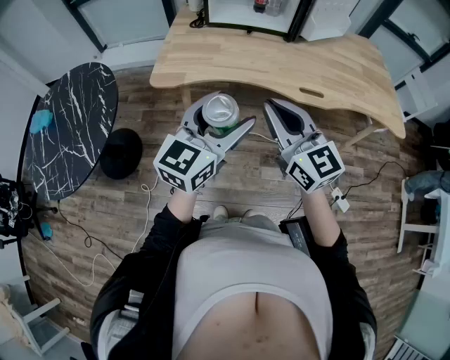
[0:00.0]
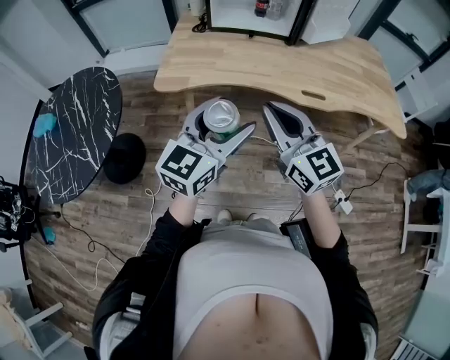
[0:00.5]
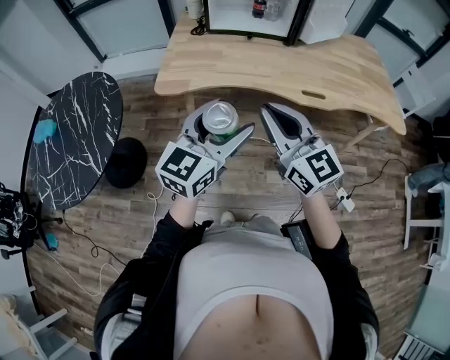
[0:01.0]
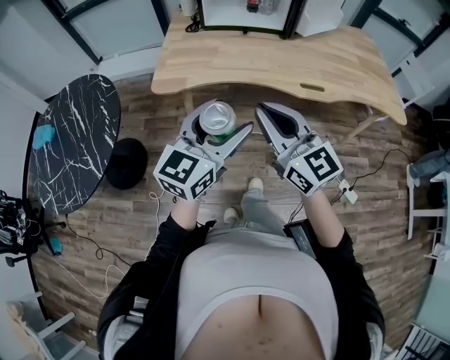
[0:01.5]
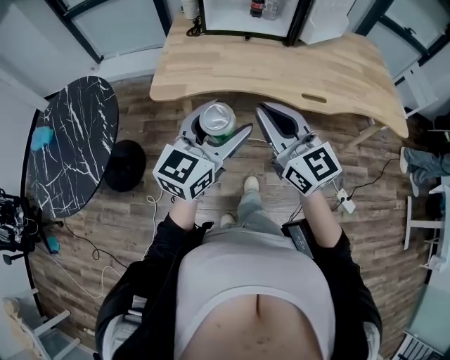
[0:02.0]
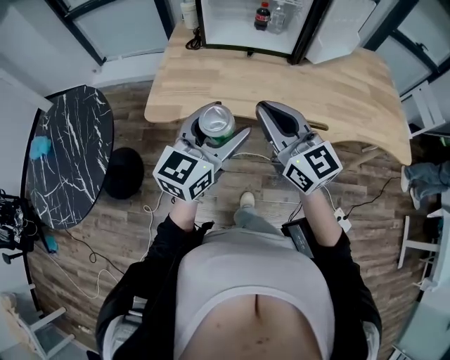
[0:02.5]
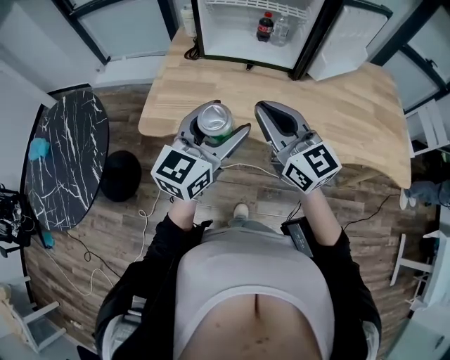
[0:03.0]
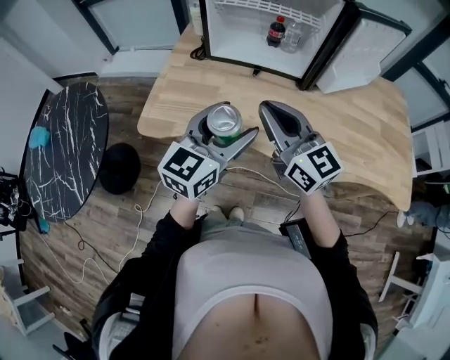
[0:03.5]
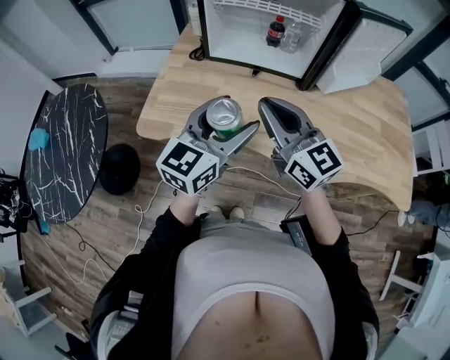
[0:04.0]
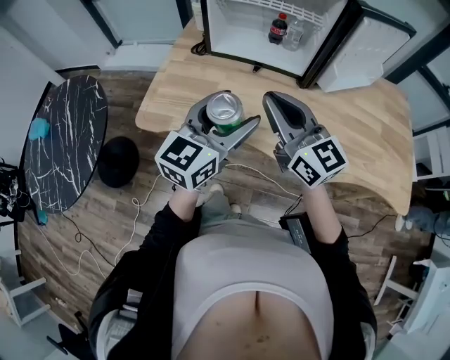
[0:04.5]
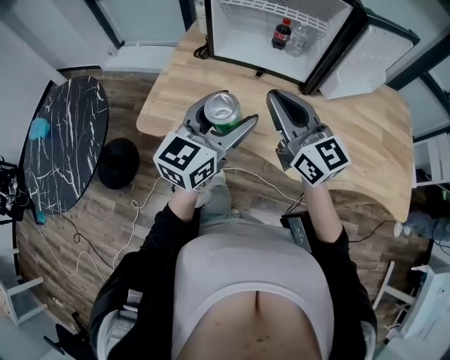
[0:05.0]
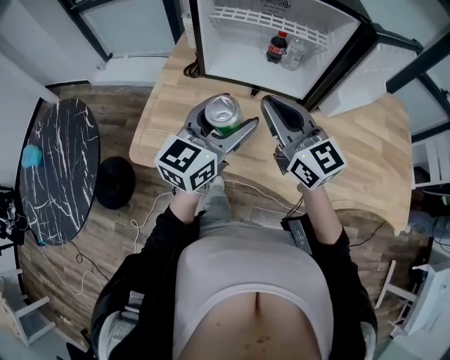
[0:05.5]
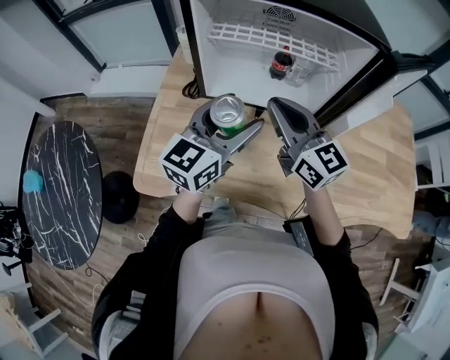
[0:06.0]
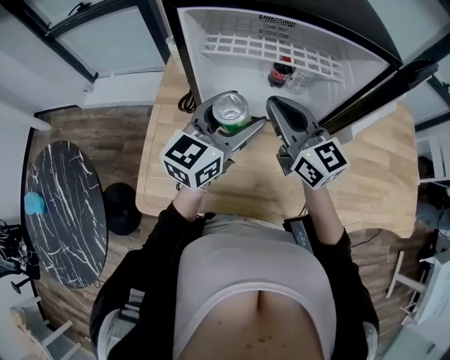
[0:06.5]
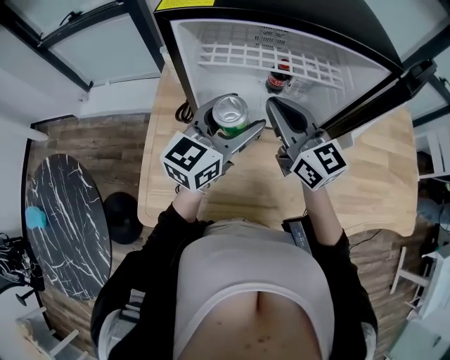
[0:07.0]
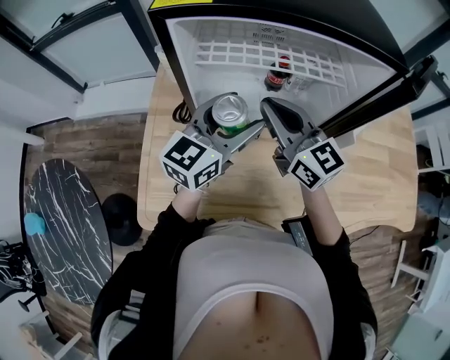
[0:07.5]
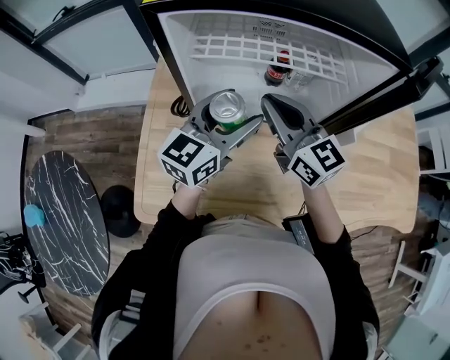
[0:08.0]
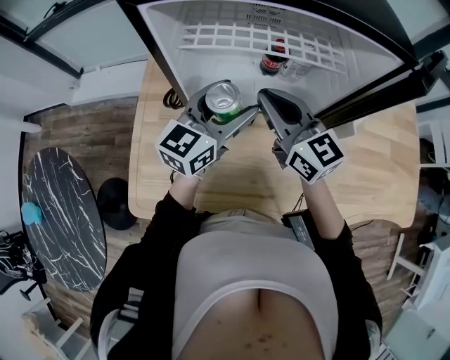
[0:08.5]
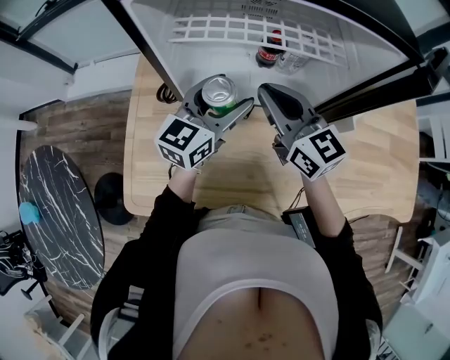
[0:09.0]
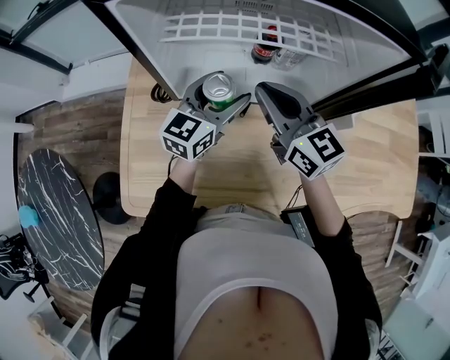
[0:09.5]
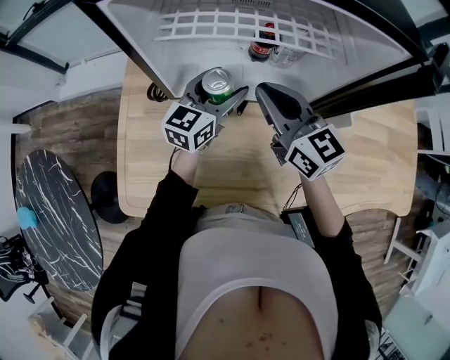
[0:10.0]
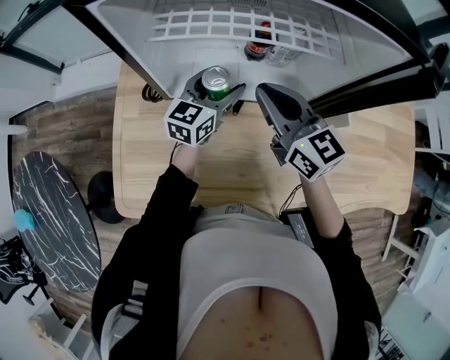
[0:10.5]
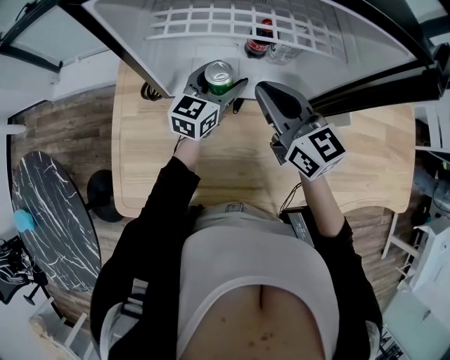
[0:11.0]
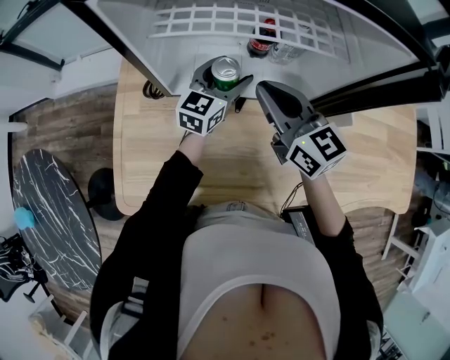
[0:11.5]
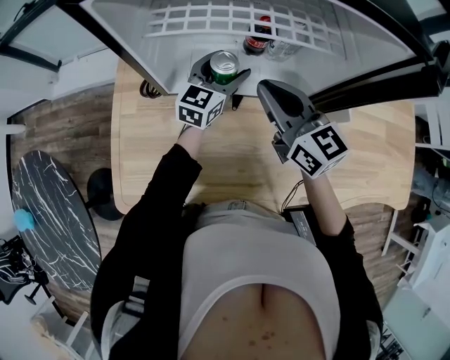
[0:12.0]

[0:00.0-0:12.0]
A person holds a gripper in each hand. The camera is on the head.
0:00.0 to 0:02.0: There are only small adjustments of the grippers.
0:02.0 to 0:04.0: The two grippers go about 25 cm forward.
0:04.0 to 0:06.0: The two grippers go approximately 20 cm forward.
0:06.0 to 0:08.0: Both grippers move forward, approximately 10 cm.
0:08.0 to 0:10.0: The left gripper travels downward and forward by approximately 15 cm, while the right gripper changes place by about 5 cm.
0:10.0 to 0:12.0: The left gripper moves approximately 5 cm.

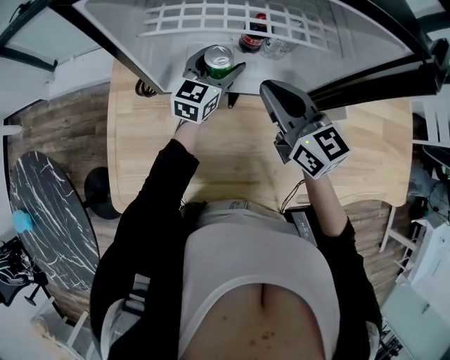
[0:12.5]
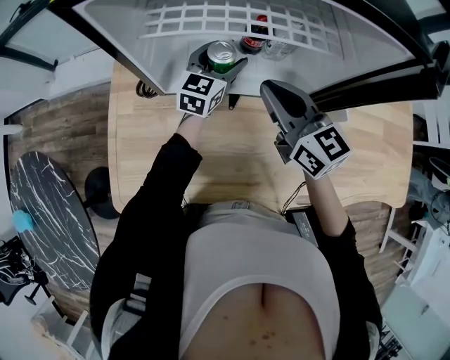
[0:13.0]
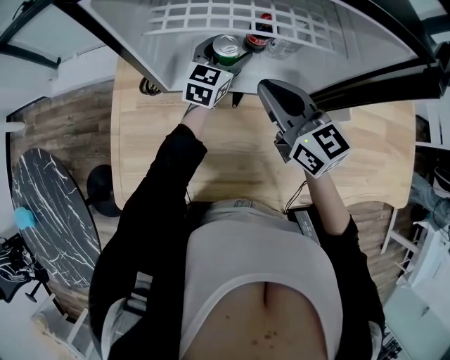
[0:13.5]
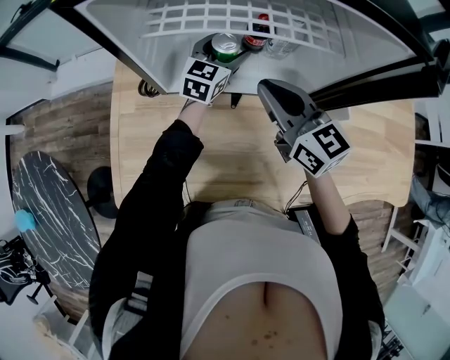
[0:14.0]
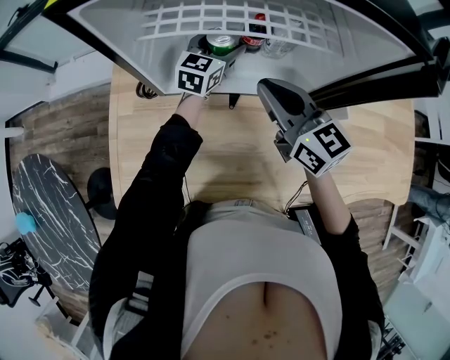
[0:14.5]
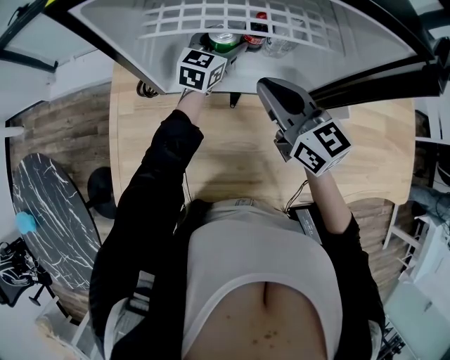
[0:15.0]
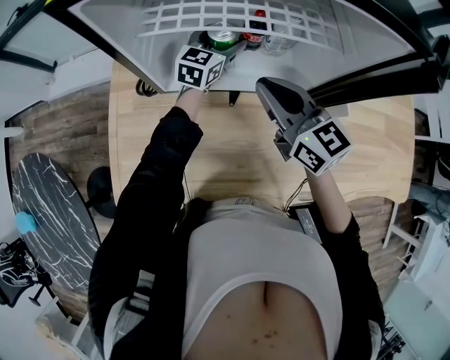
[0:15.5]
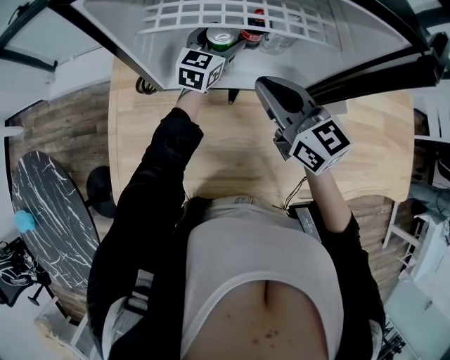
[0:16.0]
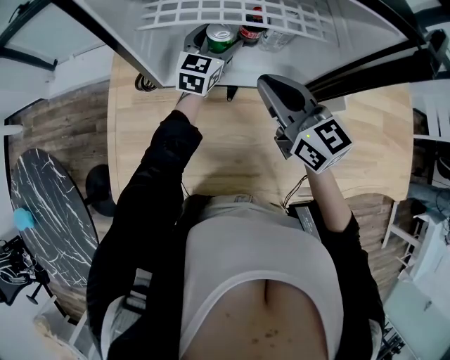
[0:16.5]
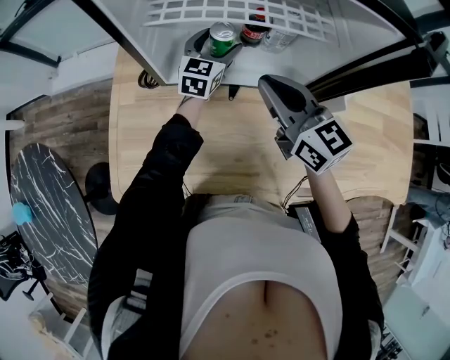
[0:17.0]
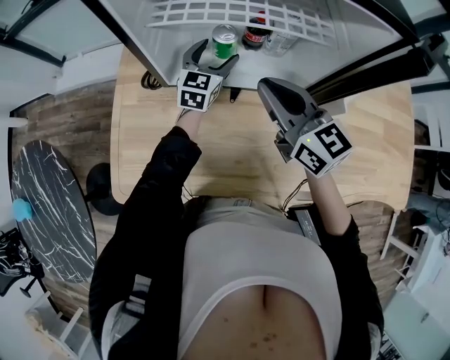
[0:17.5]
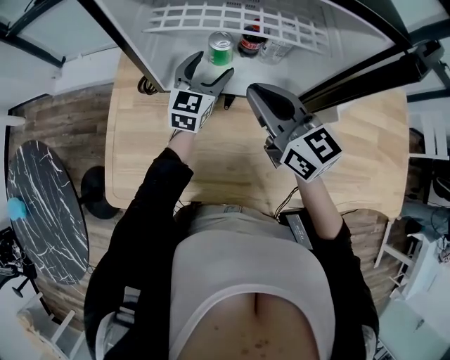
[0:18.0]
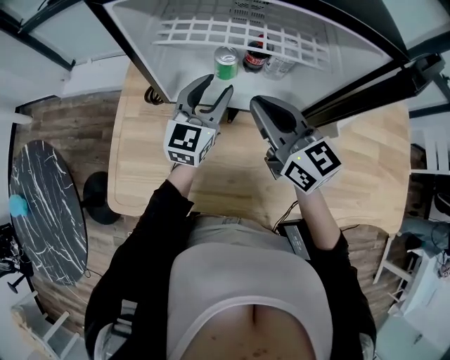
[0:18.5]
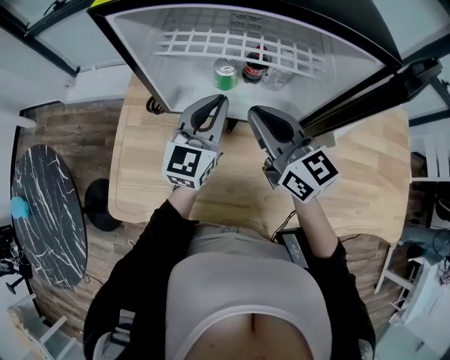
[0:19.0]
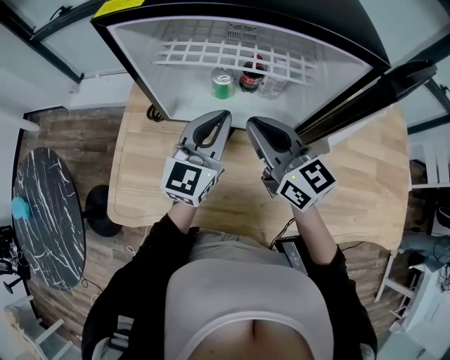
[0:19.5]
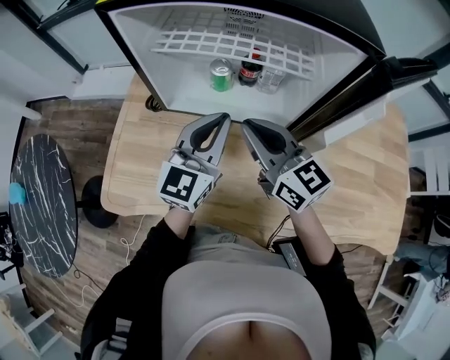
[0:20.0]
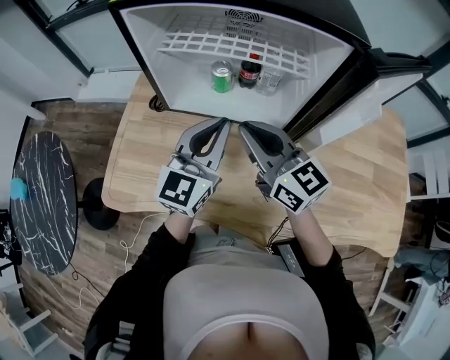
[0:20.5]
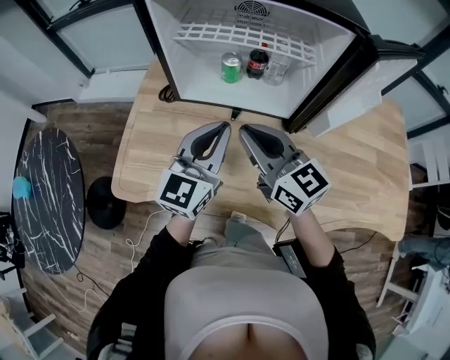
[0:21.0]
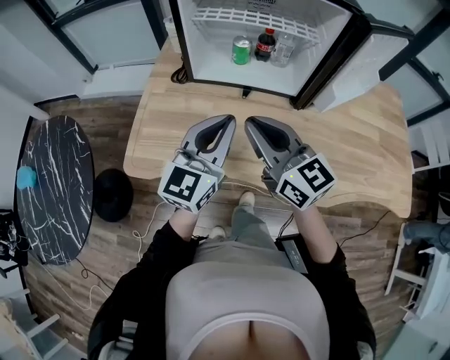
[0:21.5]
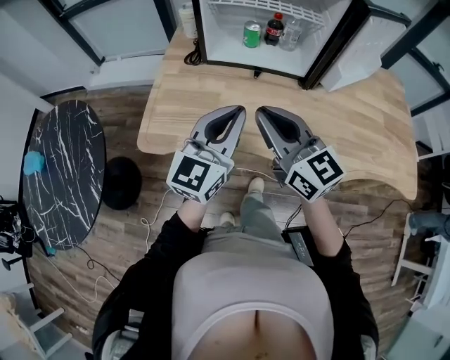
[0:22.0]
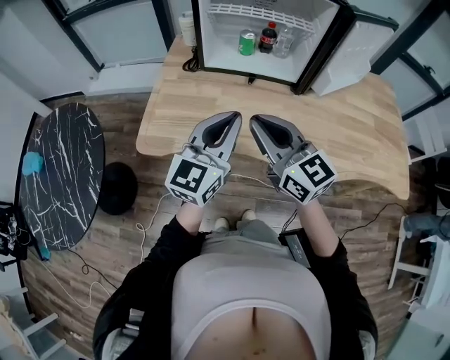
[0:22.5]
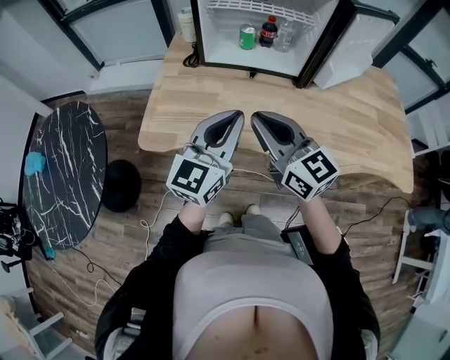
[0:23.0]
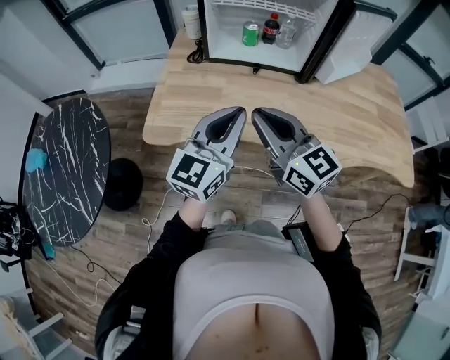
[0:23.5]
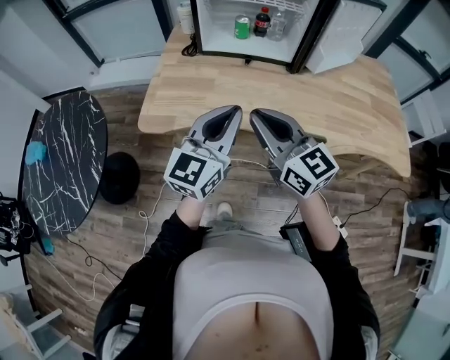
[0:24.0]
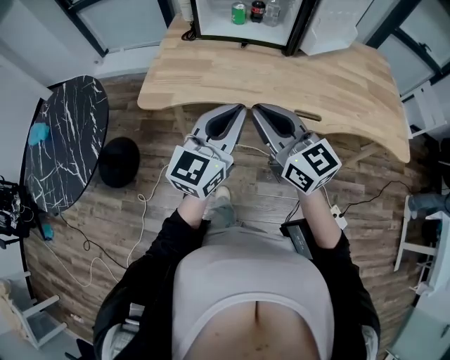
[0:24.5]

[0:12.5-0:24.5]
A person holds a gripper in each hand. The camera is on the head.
0:12.5 to 0:14.5: The left gripper heads forward, covering approximately 5 cm.
0:14.5 to 0:16.5: The grippers move only a little.
0:16.5 to 0:18.5: The left gripper moves backward and upward, some 15 cm, and closes its fingers.
0:18.5 to 0:20.5: The left gripper moves backward and upward, some 15 cm, and closes; the right gripper travels backward by roughly 5 cm.
0:20.5 to 0:22.5: Both grippers move backward and to the left, some 25 cm.
0:22.5 to 0:24.5: The grippers both shift backward by some 15 cm.

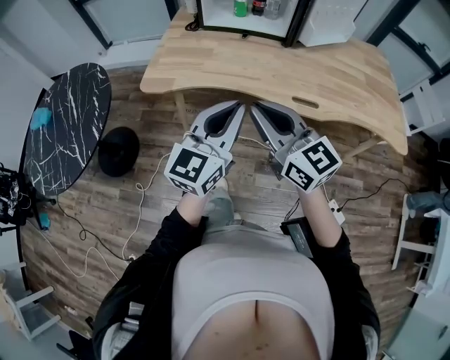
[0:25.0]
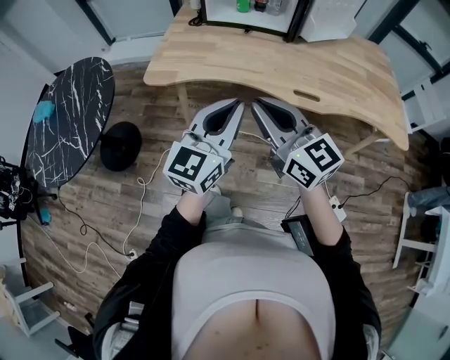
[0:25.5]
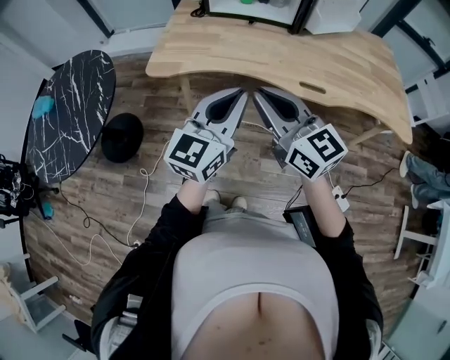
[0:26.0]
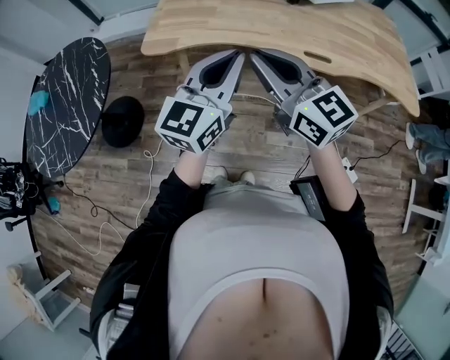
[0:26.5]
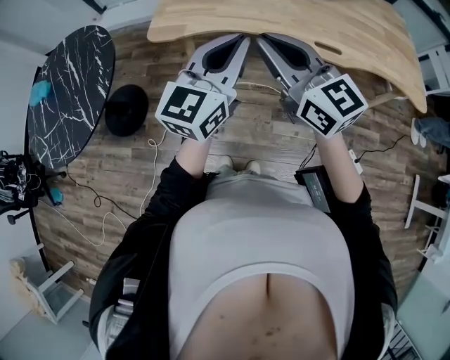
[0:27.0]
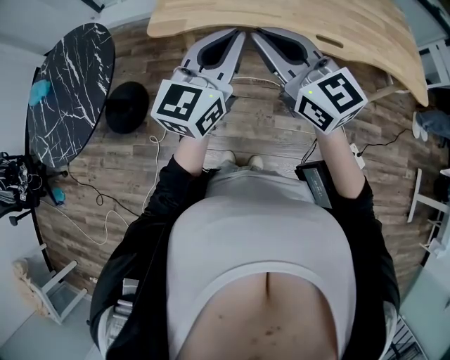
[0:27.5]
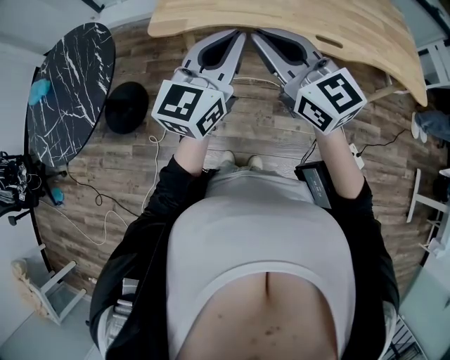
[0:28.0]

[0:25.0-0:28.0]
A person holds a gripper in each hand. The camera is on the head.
0:25.0 to 0:26.5: The grippers make only small movements.
0:26.5 to 0:28.0: There are only small adjustments of the grippers.
